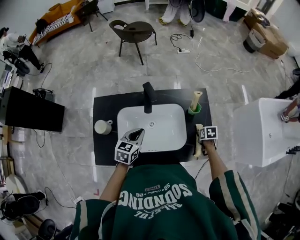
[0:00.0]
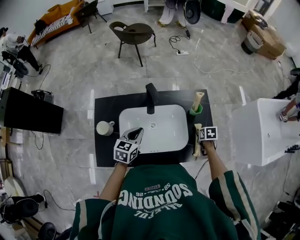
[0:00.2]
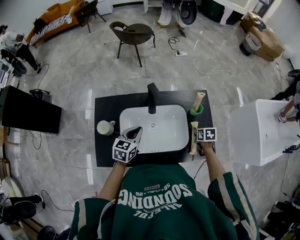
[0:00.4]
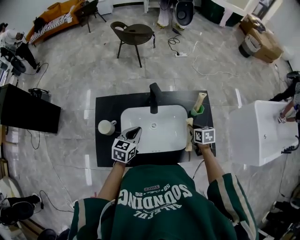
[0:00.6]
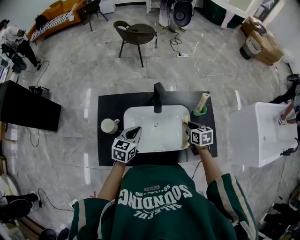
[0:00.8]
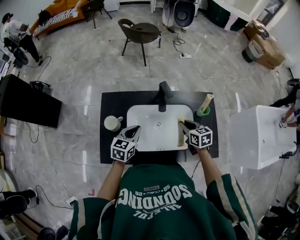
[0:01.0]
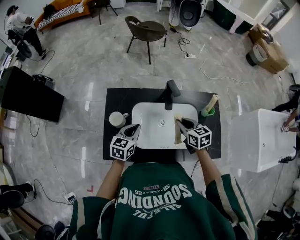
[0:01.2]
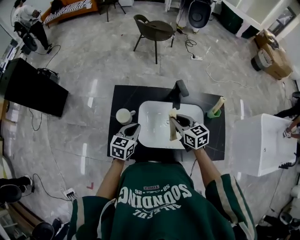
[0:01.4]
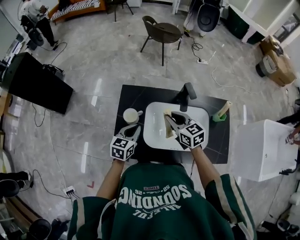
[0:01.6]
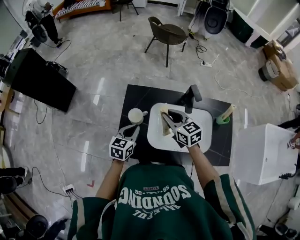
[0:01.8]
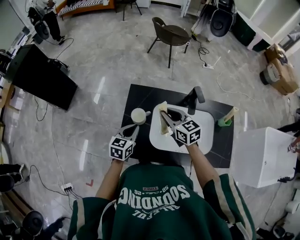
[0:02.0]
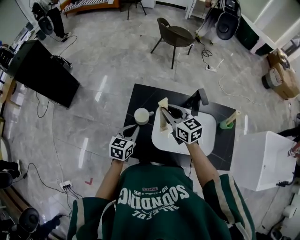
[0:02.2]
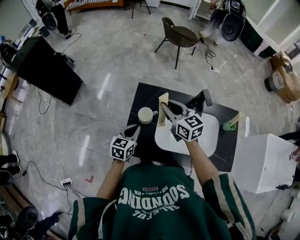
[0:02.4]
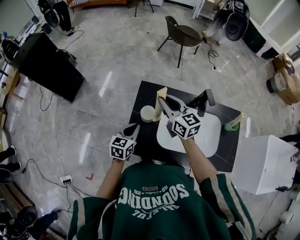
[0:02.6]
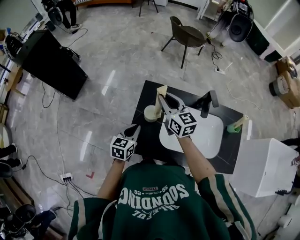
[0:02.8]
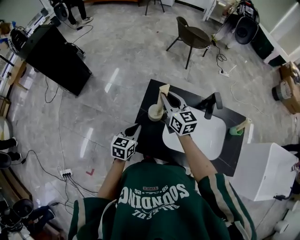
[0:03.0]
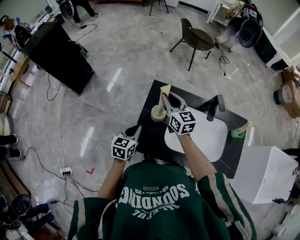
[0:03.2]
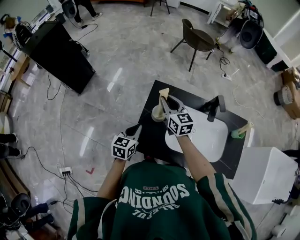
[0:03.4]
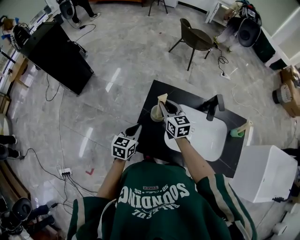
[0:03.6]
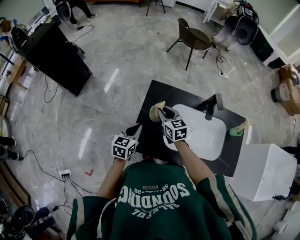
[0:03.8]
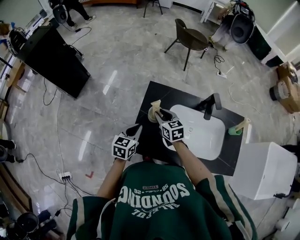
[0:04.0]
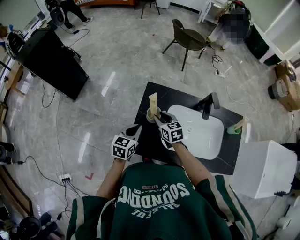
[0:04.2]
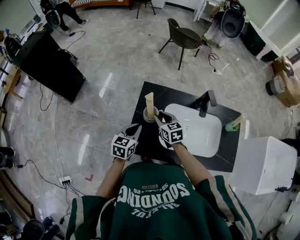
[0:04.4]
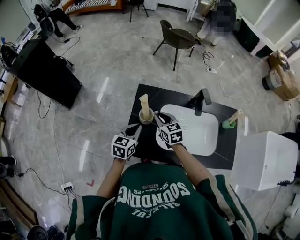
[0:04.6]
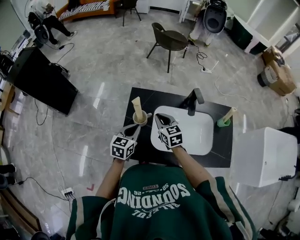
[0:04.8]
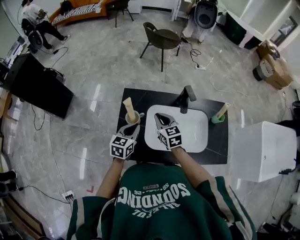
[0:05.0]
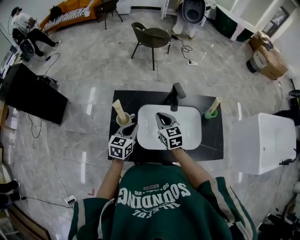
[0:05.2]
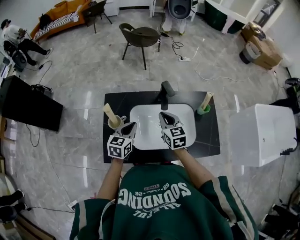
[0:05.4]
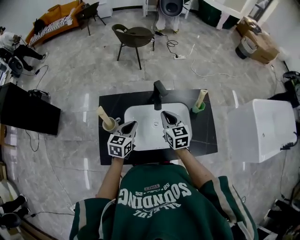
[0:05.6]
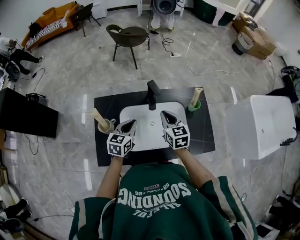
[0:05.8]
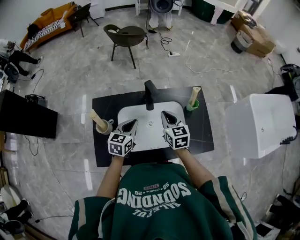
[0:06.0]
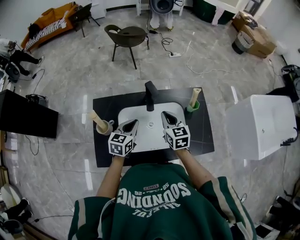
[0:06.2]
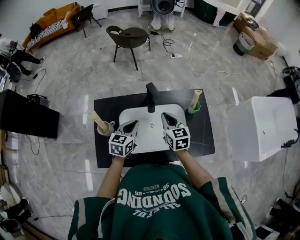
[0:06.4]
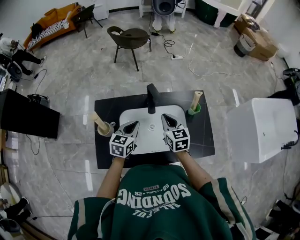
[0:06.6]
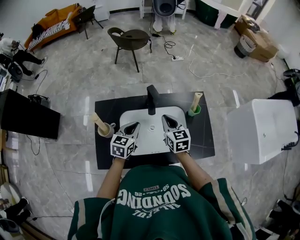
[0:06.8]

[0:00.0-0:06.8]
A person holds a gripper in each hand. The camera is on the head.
0:00.0 to 0:01.4: The right gripper heads to the left and upward, covering approximately 40 cm, and tips its fingers upward by some 40 degrees; the left gripper shifts about 20 cm to the left.
0:01.4 to 0:02.8: The left gripper heads to the left, covering roughly 15 cm. Meanwhile the right gripper shifts approximately 25 cm to the left and forward.
0:02.8 to 0:04.0: The right gripper moves downward, some 15 cm, and changes its angle by some 20 degrees.
0:04.0 to 0:05.4: Both grippers travel together to the right, some 25 cm. The right gripper turns by about 20 degrees.
0:05.4 to 0:06.8: Both grippers move to the right, some 10 cm.

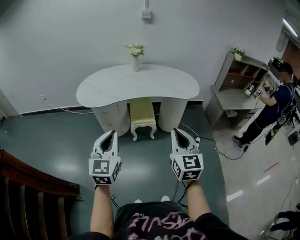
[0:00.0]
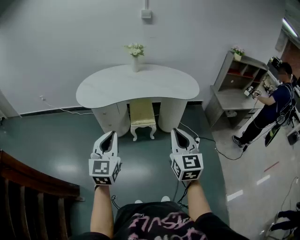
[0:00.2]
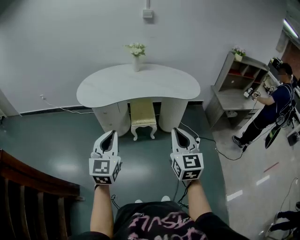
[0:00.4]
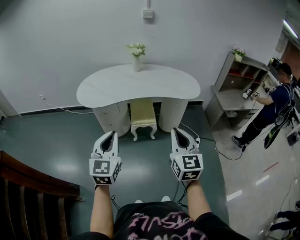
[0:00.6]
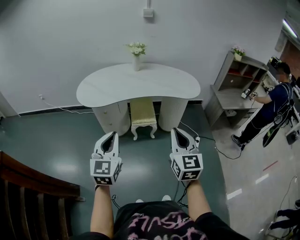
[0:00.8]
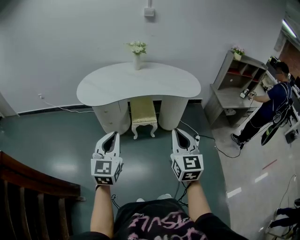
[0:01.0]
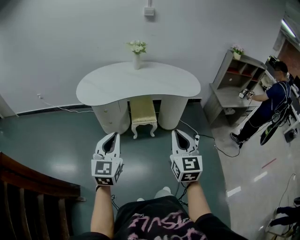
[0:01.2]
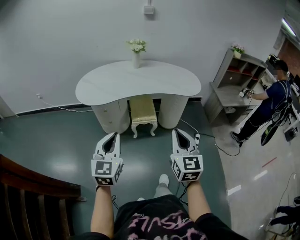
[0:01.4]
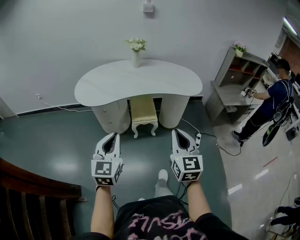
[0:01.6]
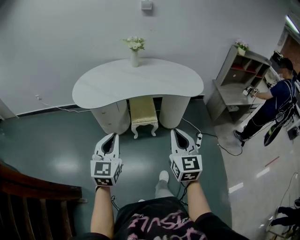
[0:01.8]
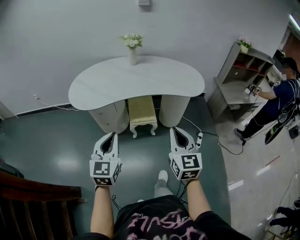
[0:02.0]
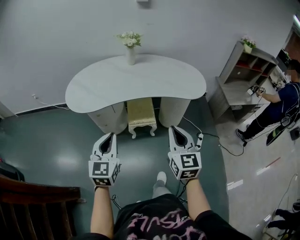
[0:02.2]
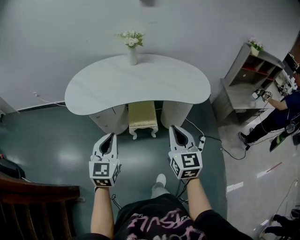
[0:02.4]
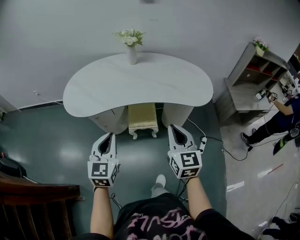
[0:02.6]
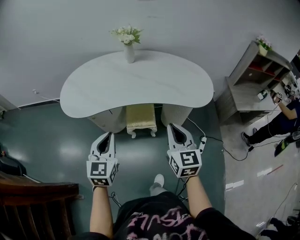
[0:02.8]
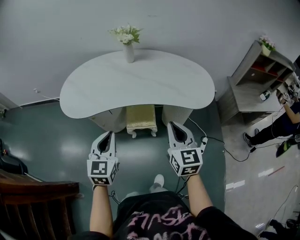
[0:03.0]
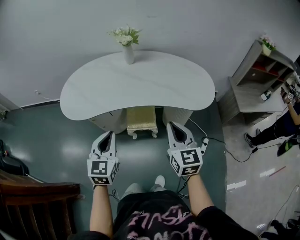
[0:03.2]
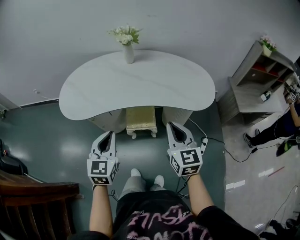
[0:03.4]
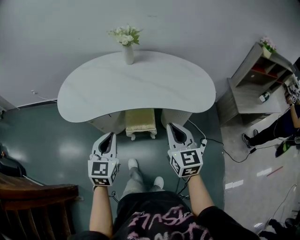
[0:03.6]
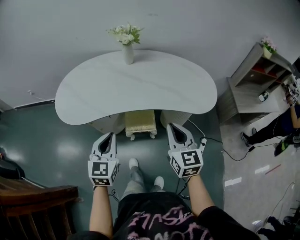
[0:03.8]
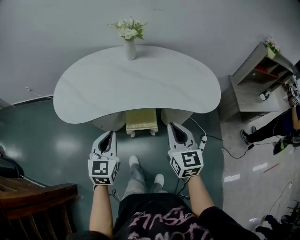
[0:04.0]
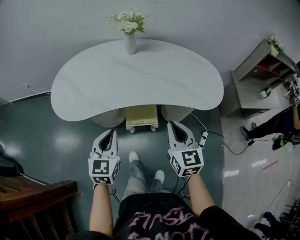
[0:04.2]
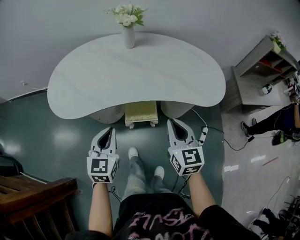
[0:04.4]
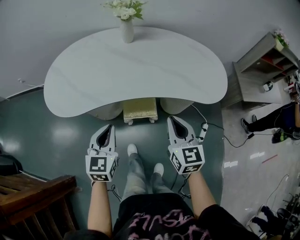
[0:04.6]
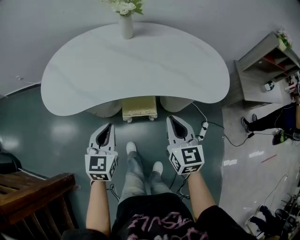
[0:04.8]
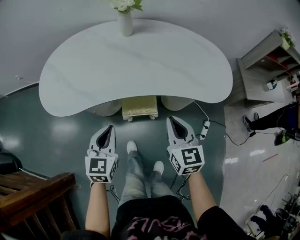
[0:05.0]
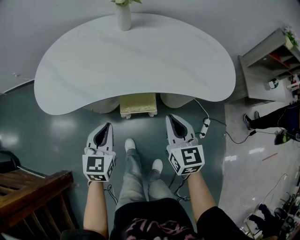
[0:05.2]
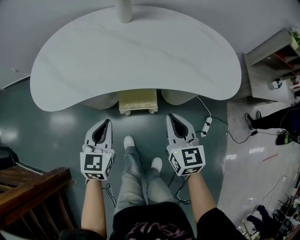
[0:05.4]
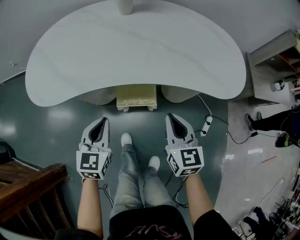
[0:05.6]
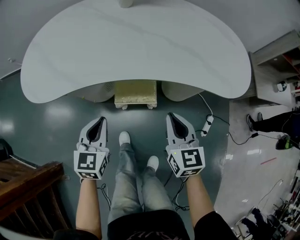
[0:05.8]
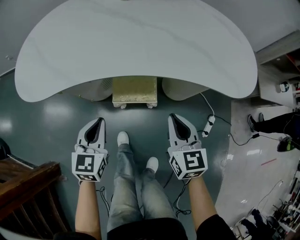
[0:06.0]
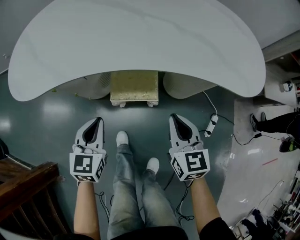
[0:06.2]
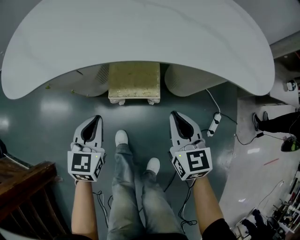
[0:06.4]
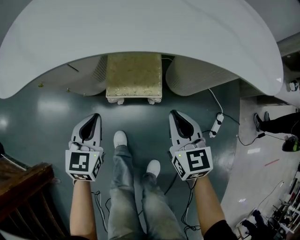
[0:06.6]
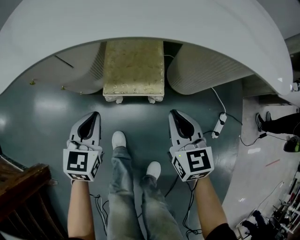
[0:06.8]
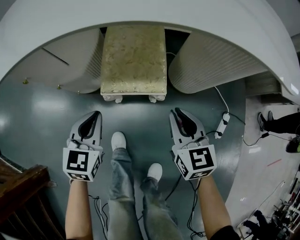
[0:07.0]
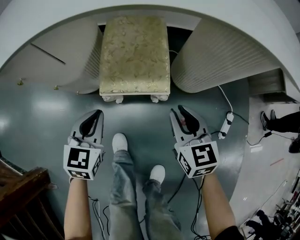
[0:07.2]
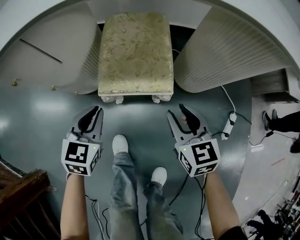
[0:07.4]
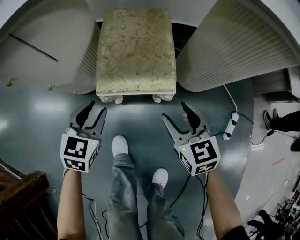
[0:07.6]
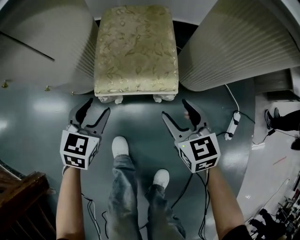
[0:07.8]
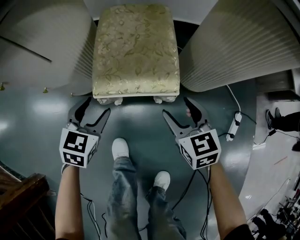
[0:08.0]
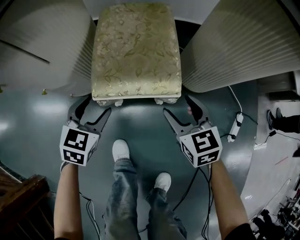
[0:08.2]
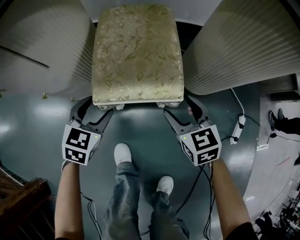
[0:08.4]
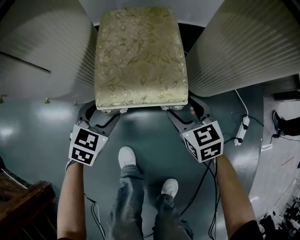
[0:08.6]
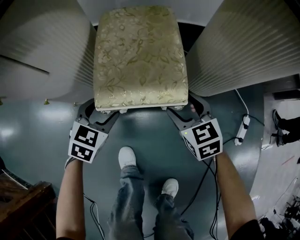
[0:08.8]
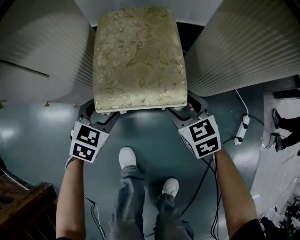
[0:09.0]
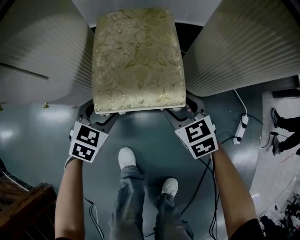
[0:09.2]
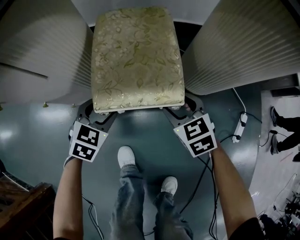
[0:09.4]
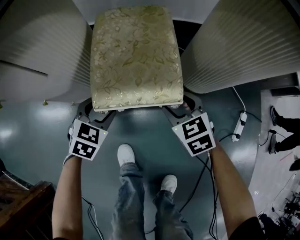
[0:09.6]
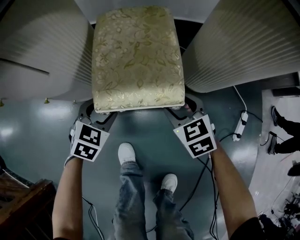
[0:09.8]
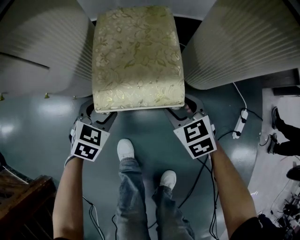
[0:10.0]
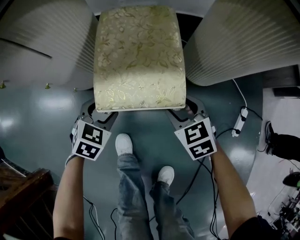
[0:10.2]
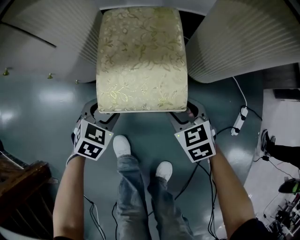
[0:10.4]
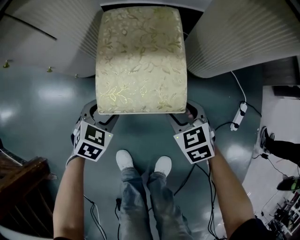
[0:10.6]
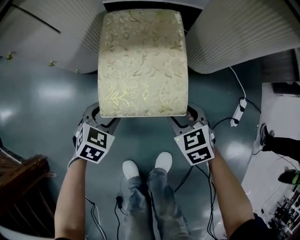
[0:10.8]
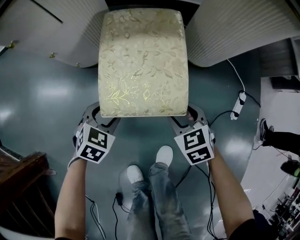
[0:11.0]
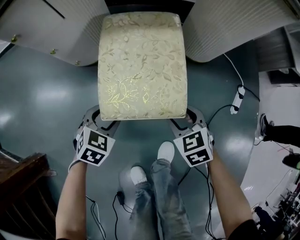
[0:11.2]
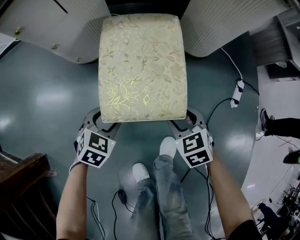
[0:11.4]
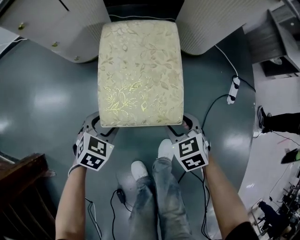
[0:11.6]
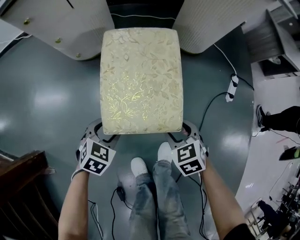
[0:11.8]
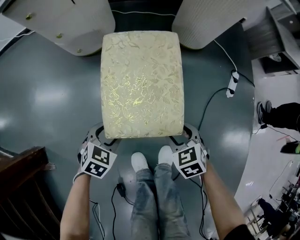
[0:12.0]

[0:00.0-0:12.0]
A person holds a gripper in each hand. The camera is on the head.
0:00.0 to 0:01.6: The left gripper moves approximately 5 cm, while the right gripper changes place by roughly 5 cm.
0:01.6 to 0:03.0: The grippers both shift forward by some 25 cm.
0:03.0 to 0:04.4: The left gripper is displaced forward and downward by approximately 10 cm. The right gripper shifts some 10 cm forward, downward and to the left.
0:04.4 to 0:06.0: The grippers both shift downward by some 20 cm.
0:06.0 to 0:07.6: Both grippers travel together downward, some 30 cm. The left gripper opens up; the right gripper opens up.
0:07.6 to 0:09.0: Both grippers travel together downward and forward, approximately 10 cm. The left gripper opens.
0:09.0 to 0:12.0: The grippers stay close to where they were, moving slightly.

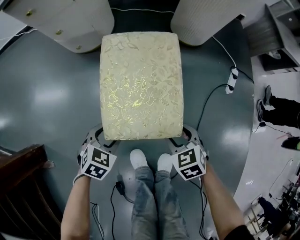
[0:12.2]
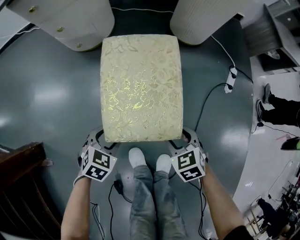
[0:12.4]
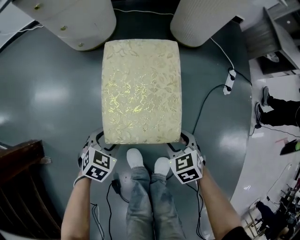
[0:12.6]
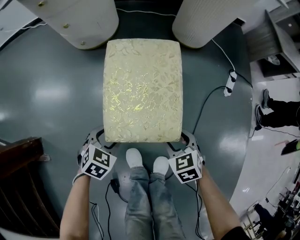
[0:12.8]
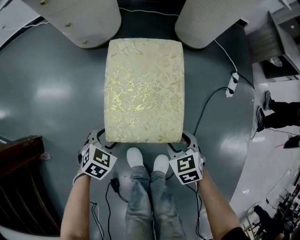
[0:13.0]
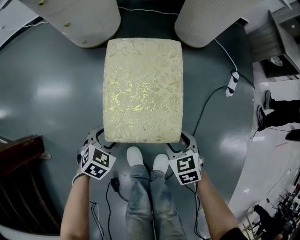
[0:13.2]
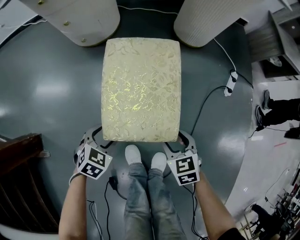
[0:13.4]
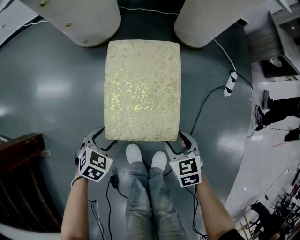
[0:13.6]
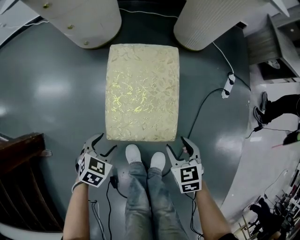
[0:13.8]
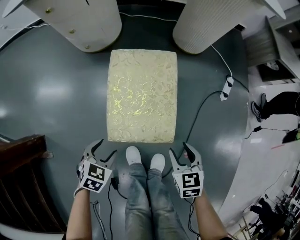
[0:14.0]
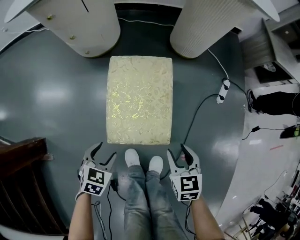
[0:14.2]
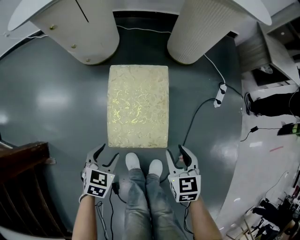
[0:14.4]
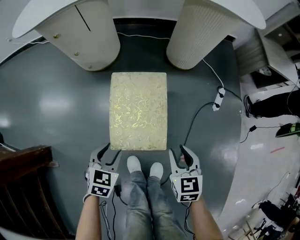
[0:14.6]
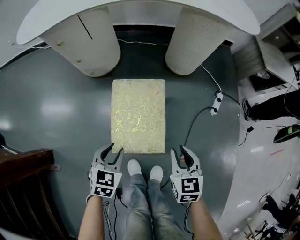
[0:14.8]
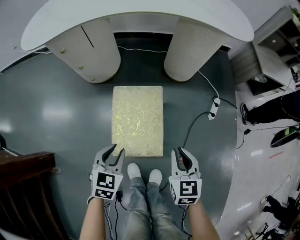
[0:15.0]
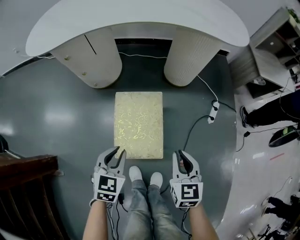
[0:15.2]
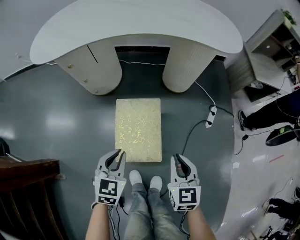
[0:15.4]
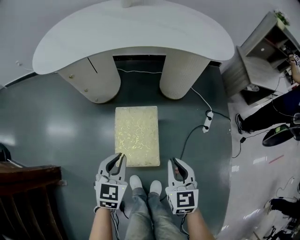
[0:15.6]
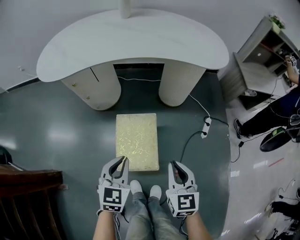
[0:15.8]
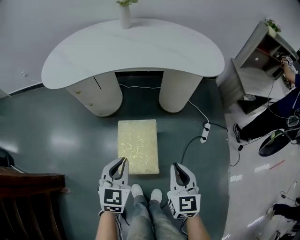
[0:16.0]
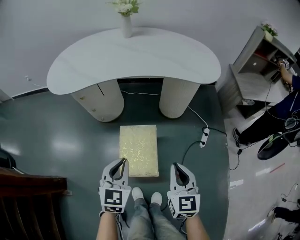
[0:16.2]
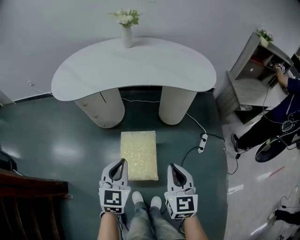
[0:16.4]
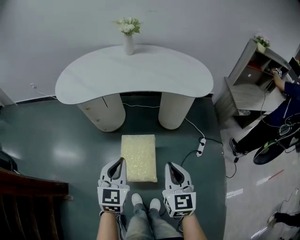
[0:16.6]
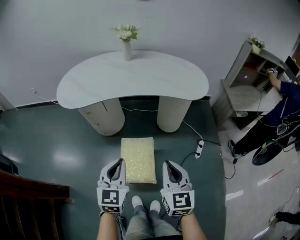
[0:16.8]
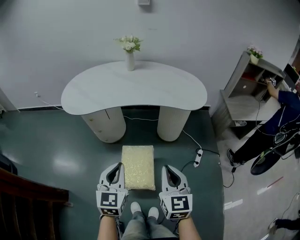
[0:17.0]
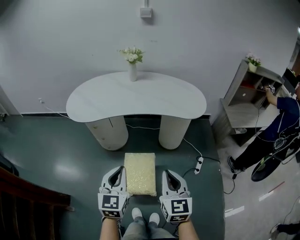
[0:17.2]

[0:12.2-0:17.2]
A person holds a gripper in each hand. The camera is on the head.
0:12.2 to 0:13.8: The right gripper goes approximately 5 cm upward. The left gripper changes place by approximately 5 cm.
0:13.8 to 0:15.6: The left gripper shifts about 35 cm upward and forward, changes its angle by some 30 degrees, and closes. The right gripper heads upward, covering approximately 30 cm, rotates approximately 30 degrees, and closes its fingers.
0:15.6 to 0:17.2: Both grippers travel together upward, some 30 cm. The left gripper changes its angle by approximately 20 degrees.
